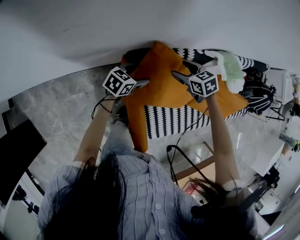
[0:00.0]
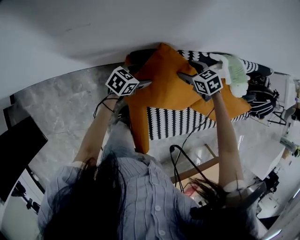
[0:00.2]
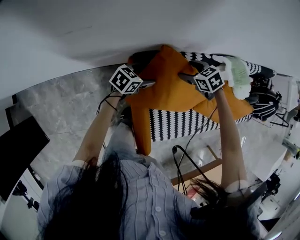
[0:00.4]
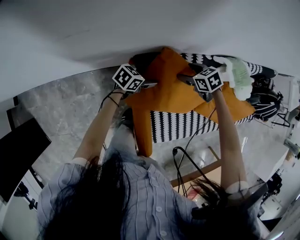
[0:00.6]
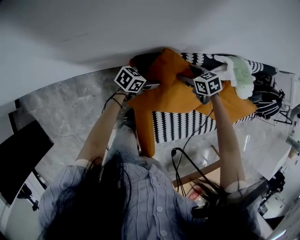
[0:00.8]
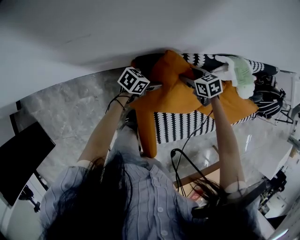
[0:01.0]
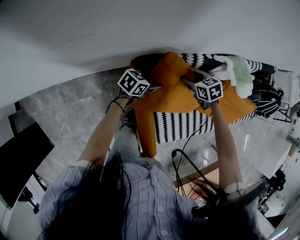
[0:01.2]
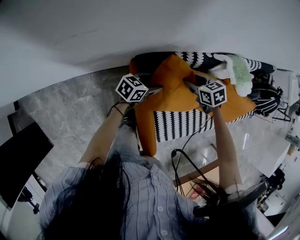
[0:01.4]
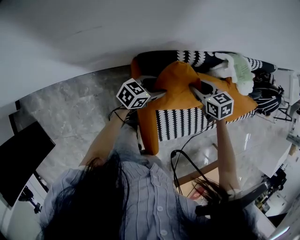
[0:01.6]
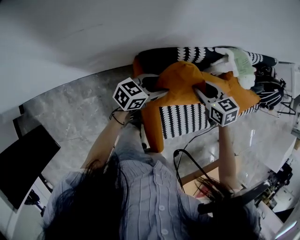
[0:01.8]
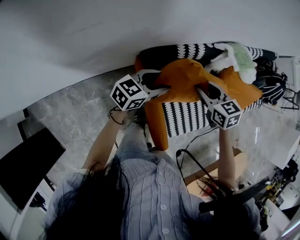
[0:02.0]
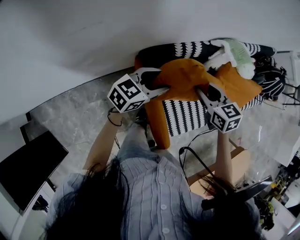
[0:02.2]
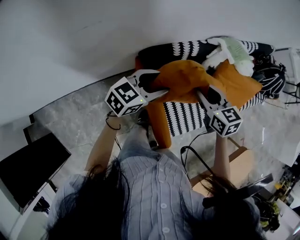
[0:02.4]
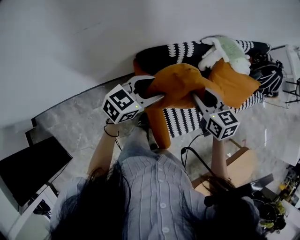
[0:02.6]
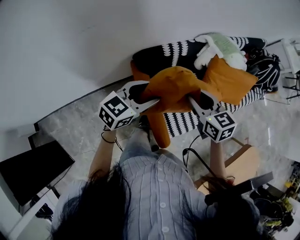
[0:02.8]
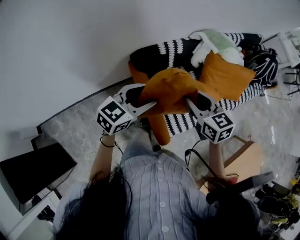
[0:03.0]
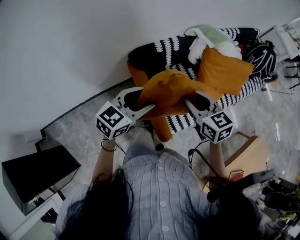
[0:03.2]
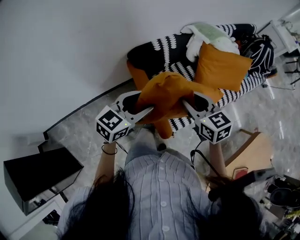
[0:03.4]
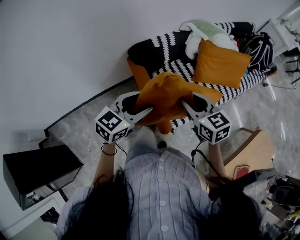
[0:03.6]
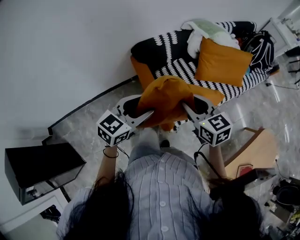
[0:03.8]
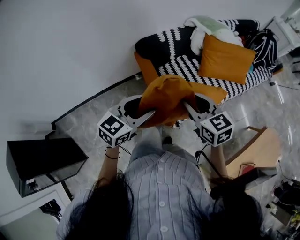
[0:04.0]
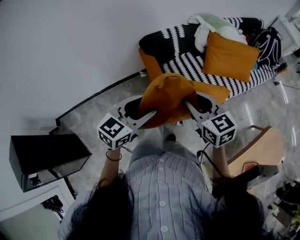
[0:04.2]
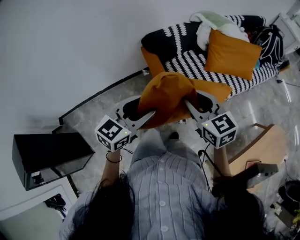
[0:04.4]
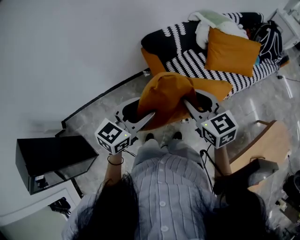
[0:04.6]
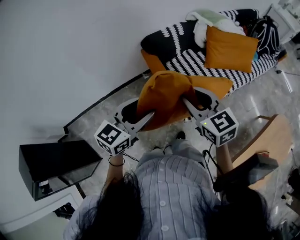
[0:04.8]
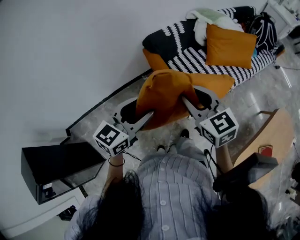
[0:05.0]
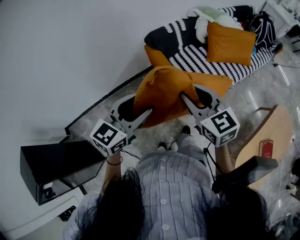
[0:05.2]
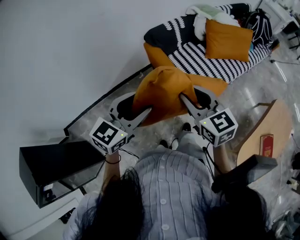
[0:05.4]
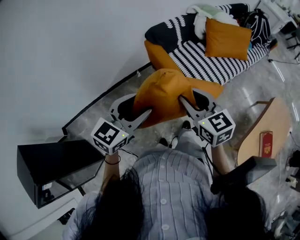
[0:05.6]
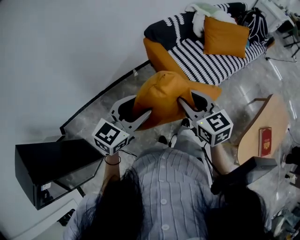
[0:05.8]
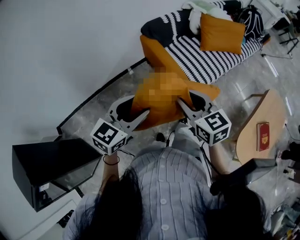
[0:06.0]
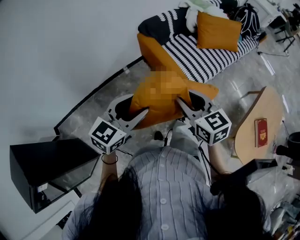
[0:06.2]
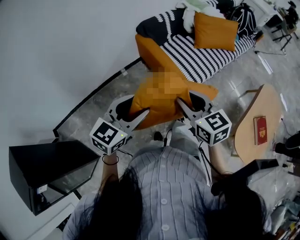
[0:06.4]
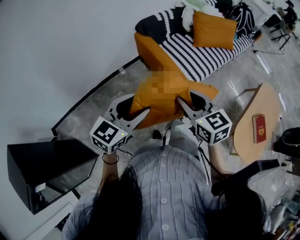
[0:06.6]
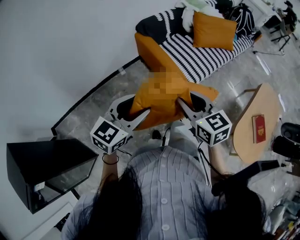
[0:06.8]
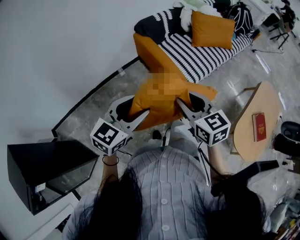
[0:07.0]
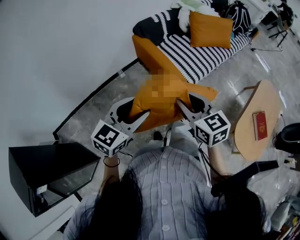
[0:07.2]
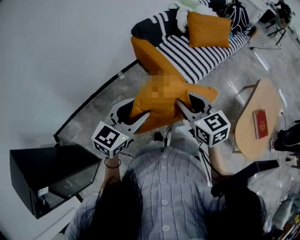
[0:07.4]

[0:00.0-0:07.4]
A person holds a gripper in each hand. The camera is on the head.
0:01.4 to 0:03.0: The right gripper travels backward and upward by roughly 35 cm, and points its fingers approximately 30 degrees further upward. Meanwhile the left gripper travels upward and backward by about 35 cm, and rotates approximately 30 degrees.
0:03.0 to 0:04.4: Both grippers travel together backward, approximately 25 cm.
0:04.4 to 0:06.0: Both grippers travel together backward and to the left, approximately 25 cm.
0:06.0 to 0:07.4: Both grippers move backward, some 5 cm.

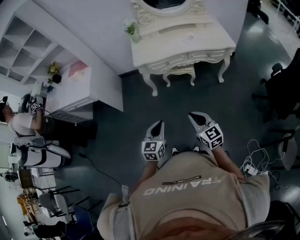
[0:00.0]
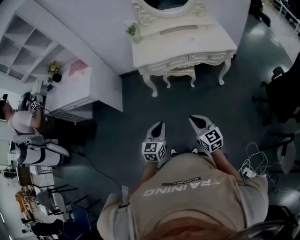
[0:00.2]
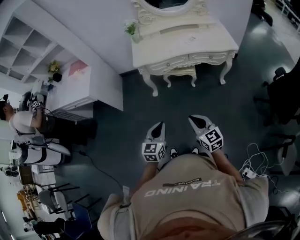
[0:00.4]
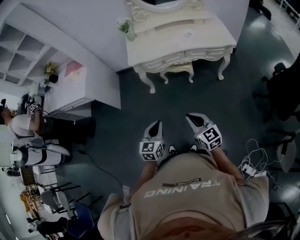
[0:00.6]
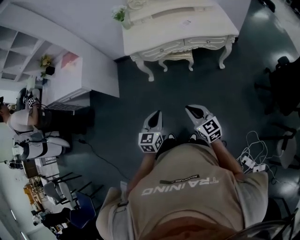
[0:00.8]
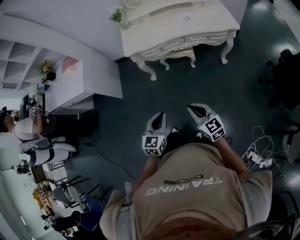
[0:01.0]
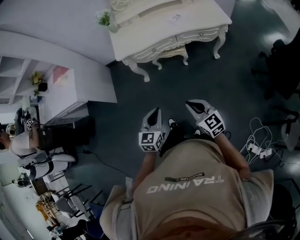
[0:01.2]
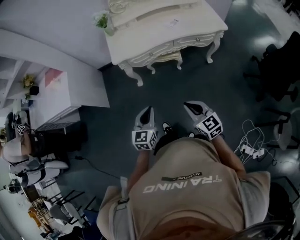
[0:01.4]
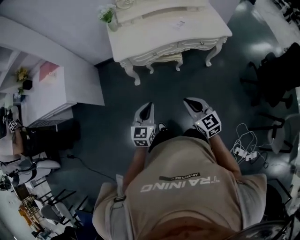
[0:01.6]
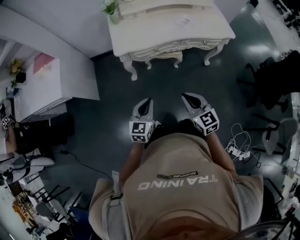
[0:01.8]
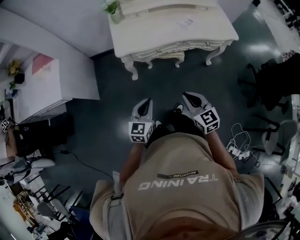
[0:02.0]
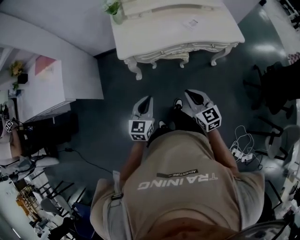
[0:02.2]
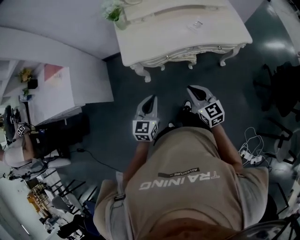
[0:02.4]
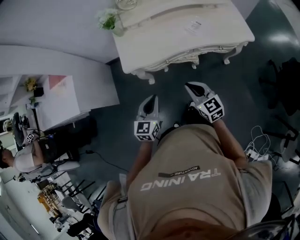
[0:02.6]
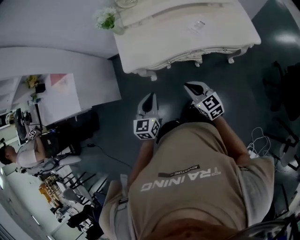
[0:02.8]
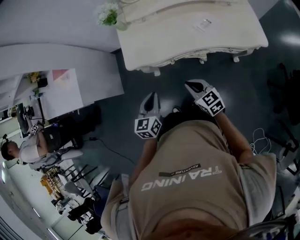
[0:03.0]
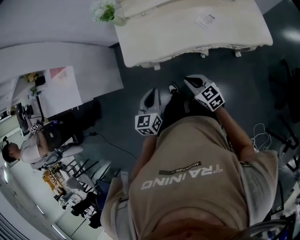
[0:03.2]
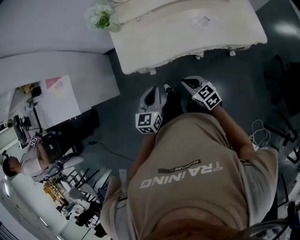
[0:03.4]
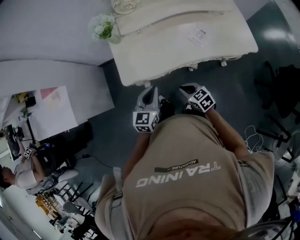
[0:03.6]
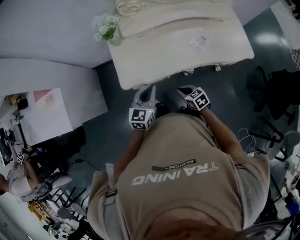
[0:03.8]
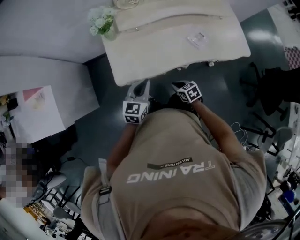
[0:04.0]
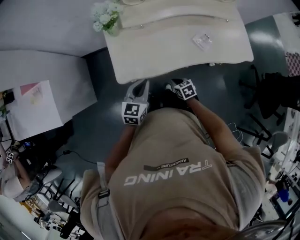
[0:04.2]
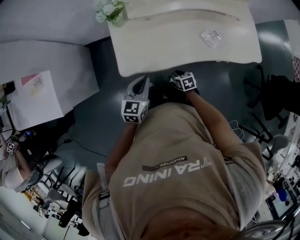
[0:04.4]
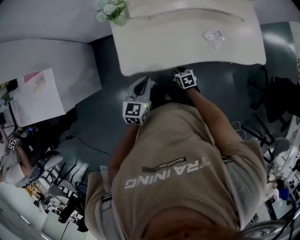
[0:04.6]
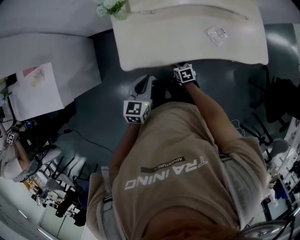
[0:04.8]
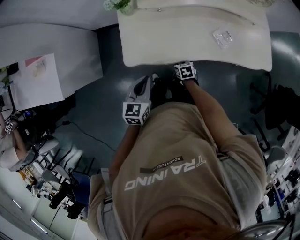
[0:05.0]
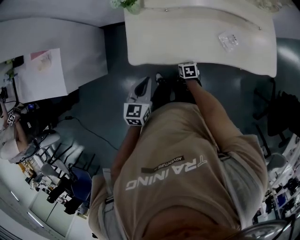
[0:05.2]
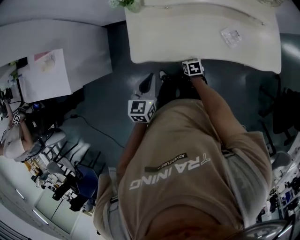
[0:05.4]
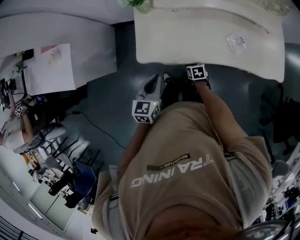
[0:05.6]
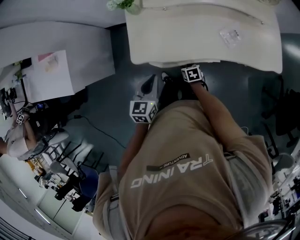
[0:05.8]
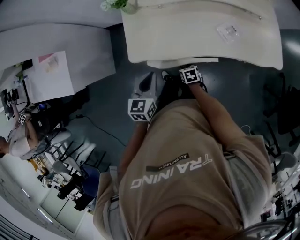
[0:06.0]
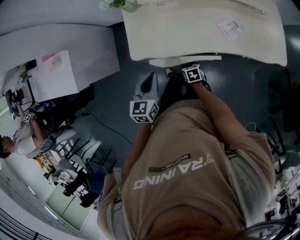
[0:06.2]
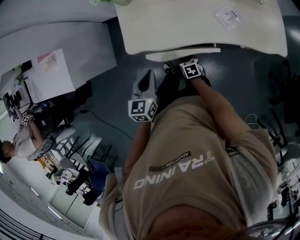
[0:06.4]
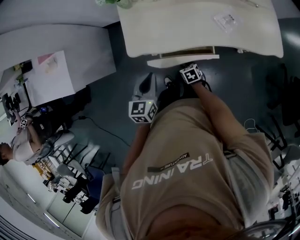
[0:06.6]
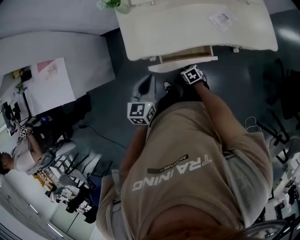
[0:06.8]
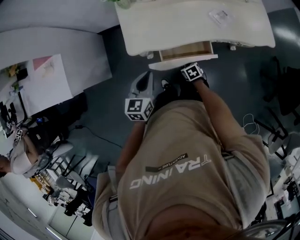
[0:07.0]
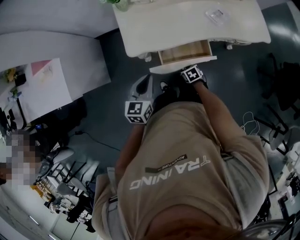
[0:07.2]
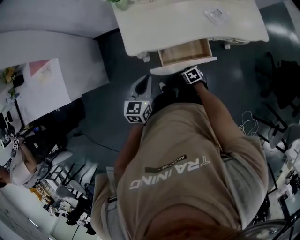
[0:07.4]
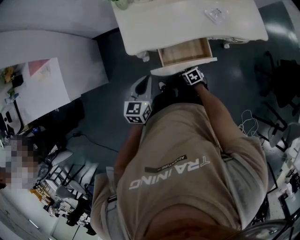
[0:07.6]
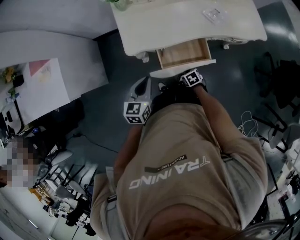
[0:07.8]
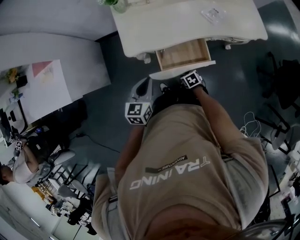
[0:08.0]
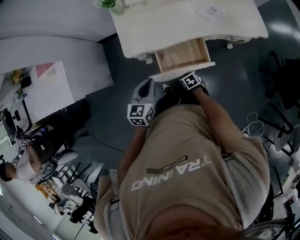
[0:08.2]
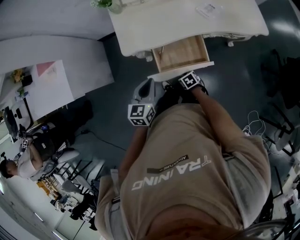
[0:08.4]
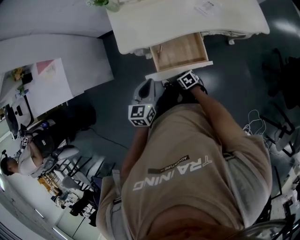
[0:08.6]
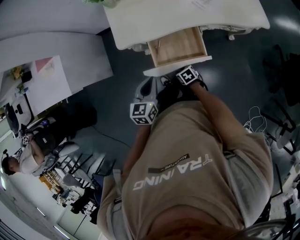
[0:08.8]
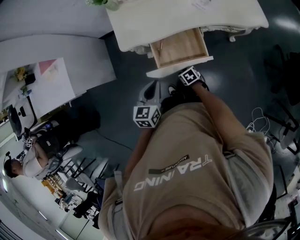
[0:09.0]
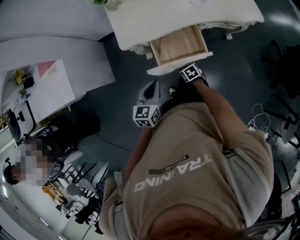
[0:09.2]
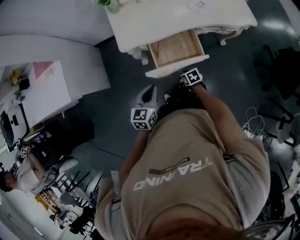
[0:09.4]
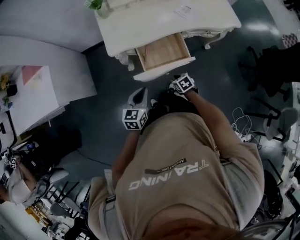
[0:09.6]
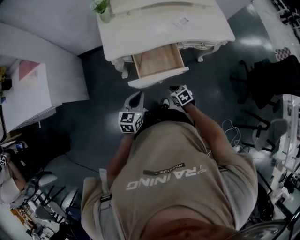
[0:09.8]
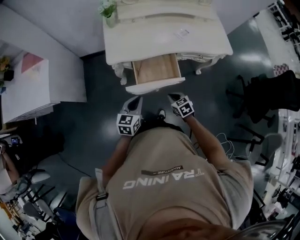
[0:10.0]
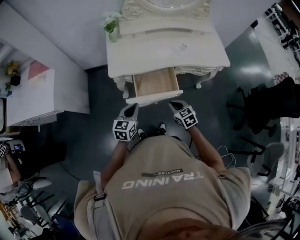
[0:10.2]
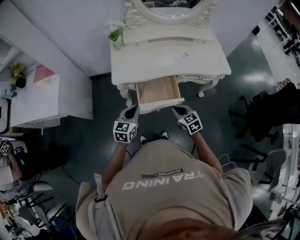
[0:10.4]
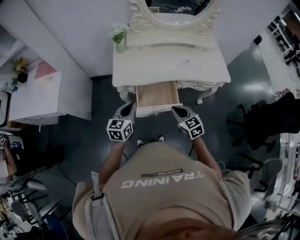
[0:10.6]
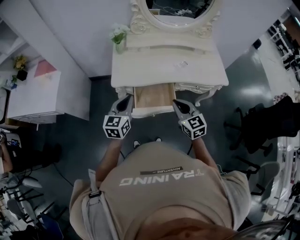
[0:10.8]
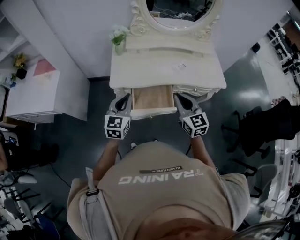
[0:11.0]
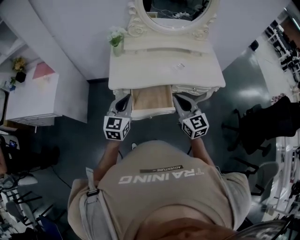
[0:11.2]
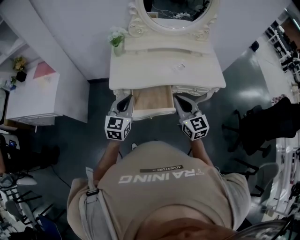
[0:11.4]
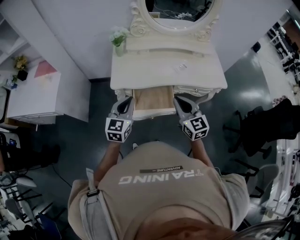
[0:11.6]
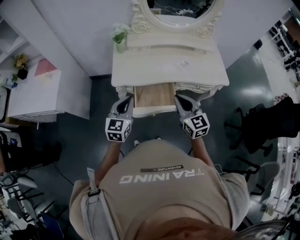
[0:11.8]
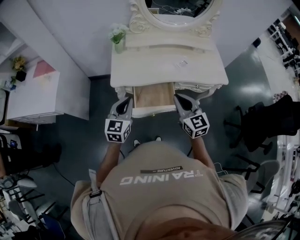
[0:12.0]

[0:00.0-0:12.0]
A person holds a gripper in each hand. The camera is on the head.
0:00.0 to 0:01.6: Both grippers travel together forward, about 20 cm.
0:01.6 to 0:03.0: Both grippers move forward, some 30 cm.
0:03.0 to 0:04.4: The right gripper heads downward and forward, covering approximately 30 cm, points its fingers some 30 degrees further downward, and opens up. The left gripper heads forward, covering about 20 cm.
0:04.4 to 0:06.0: The grippers make only small movements.
0:06.0 to 0:07.6: The left gripper changes place by about 15 cm. The right gripper shifts by some 15 cm, and rotates approximately 20 degrees.
0:07.6 to 0:09.0: The left gripper changes place by some 15 cm.
0:09.0 to 0:10.4: The right gripper shifts about 30 cm upward, turns by some 40 degrees, and closes its fingers. The left gripper goes some 5 cm upward.
0:10.4 to 0:12.0: The left gripper heads upward, covering some 10 cm, while the right gripper travels upward by some 20 cm, and swivels roughly 30 degrees.

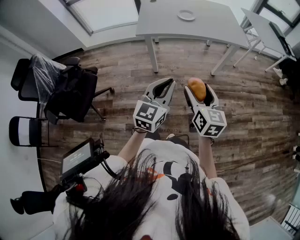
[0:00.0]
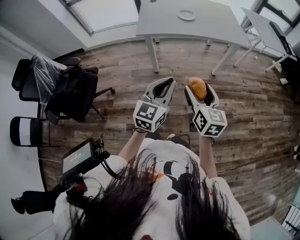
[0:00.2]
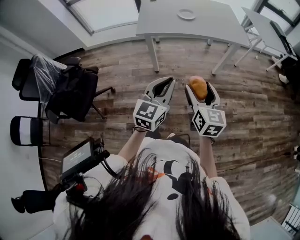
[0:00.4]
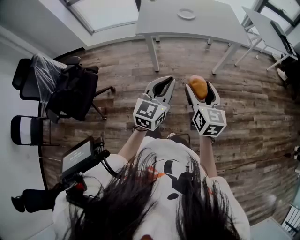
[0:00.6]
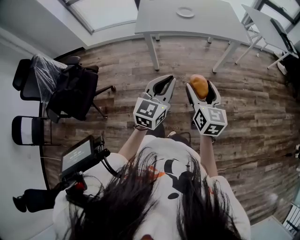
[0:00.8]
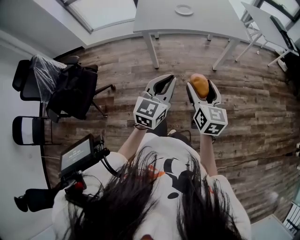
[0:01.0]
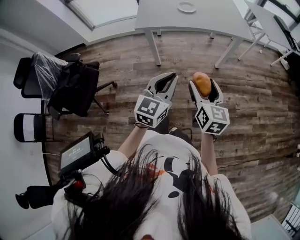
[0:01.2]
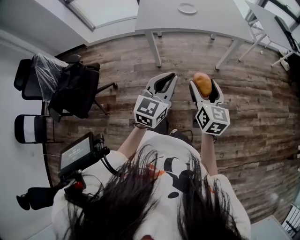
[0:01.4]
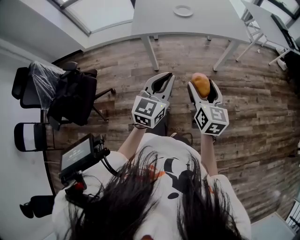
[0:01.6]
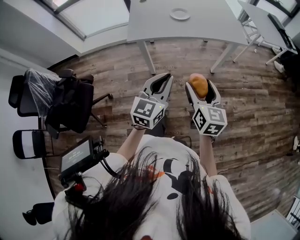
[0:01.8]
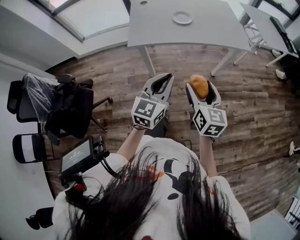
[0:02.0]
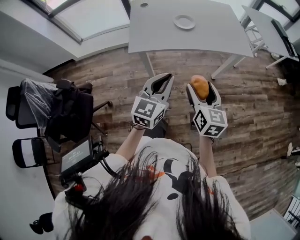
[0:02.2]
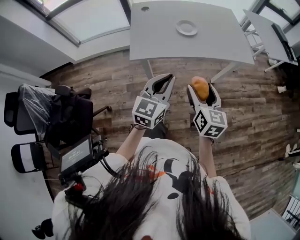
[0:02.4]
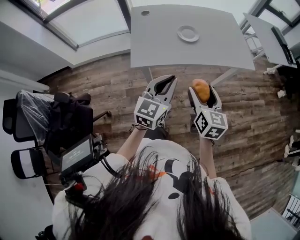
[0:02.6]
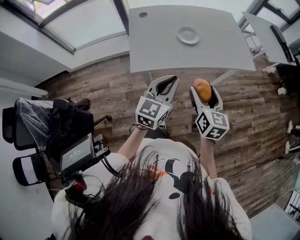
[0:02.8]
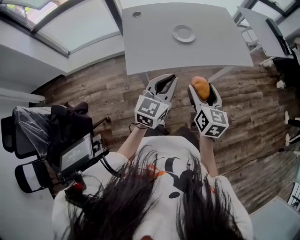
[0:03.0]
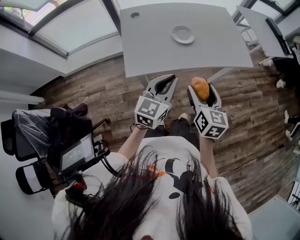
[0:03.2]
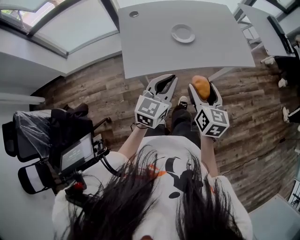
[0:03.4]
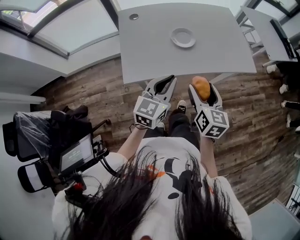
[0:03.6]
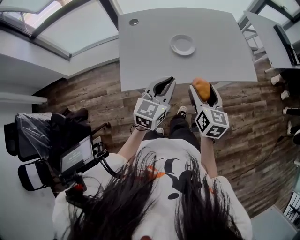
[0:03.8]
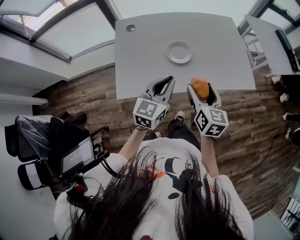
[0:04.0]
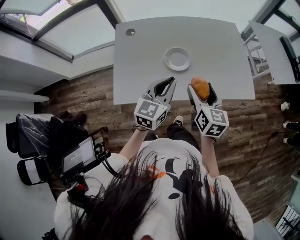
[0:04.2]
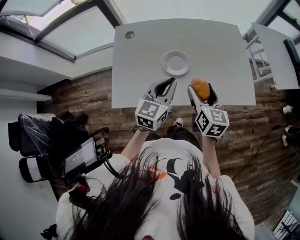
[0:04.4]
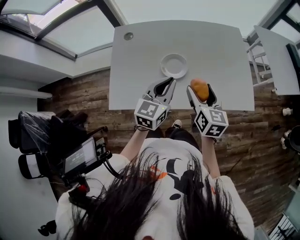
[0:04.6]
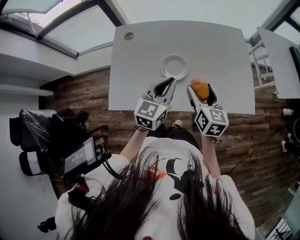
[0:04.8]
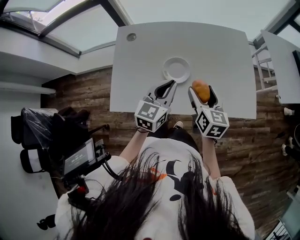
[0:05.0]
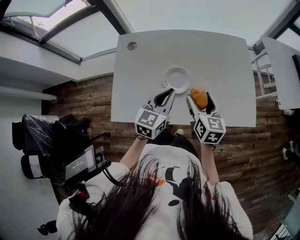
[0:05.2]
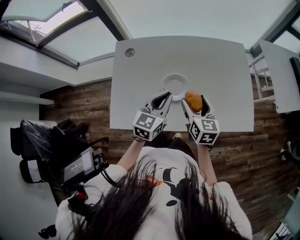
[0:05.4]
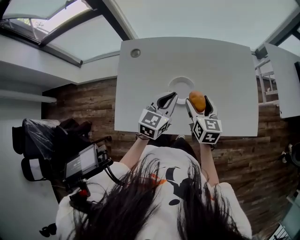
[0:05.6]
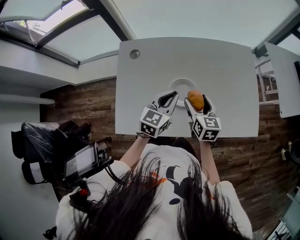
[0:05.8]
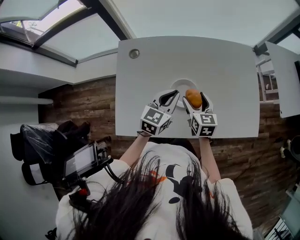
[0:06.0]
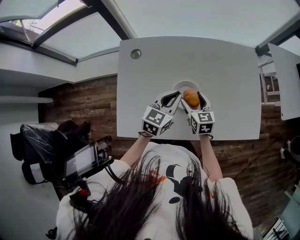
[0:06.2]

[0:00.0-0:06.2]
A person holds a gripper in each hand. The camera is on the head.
0:00.0 to 0:01.6: The two grippers go approximately 5 cm forward.
0:01.6 to 0:03.2: Both grippers move forward and to the left, about 30 cm.
0:03.2 to 0:04.6: Both grippers travel together forward, approximately 25 cm.
0:04.6 to 0:06.2: The right gripper travels downward, forward and to the left by approximately 20 cm. The left gripper heads forward and downward, covering roughly 10 cm.
